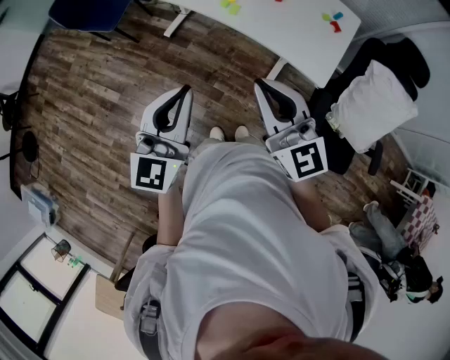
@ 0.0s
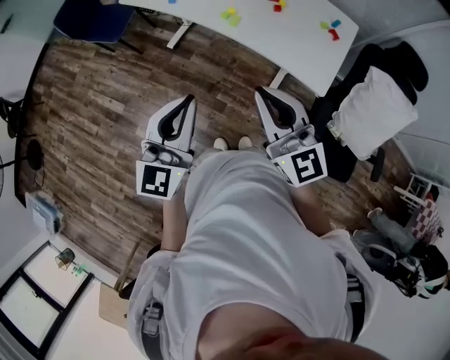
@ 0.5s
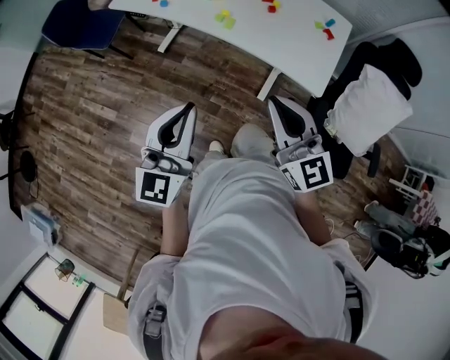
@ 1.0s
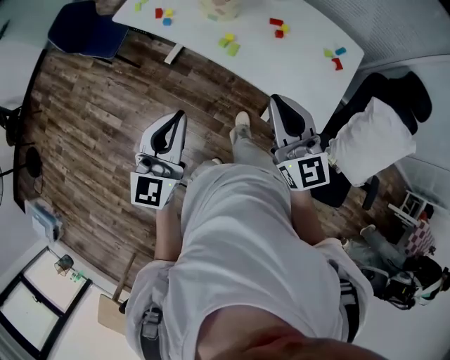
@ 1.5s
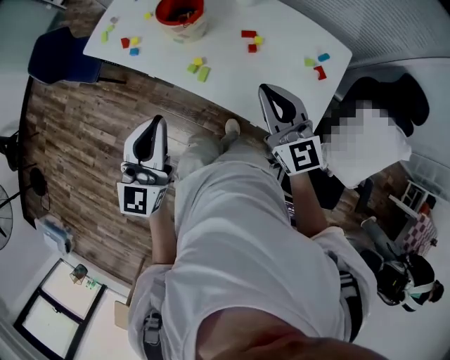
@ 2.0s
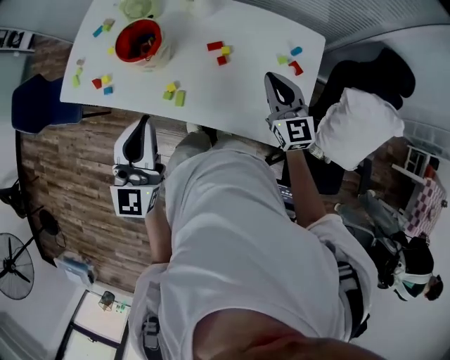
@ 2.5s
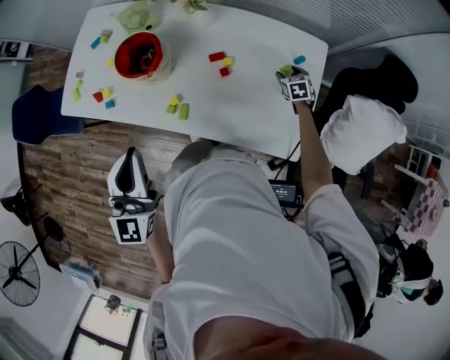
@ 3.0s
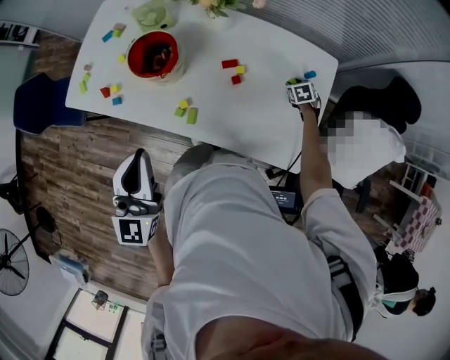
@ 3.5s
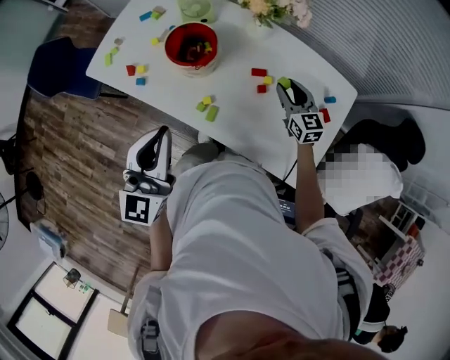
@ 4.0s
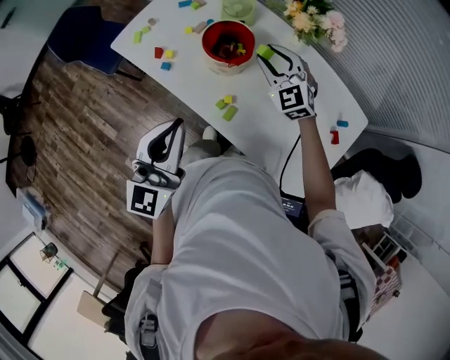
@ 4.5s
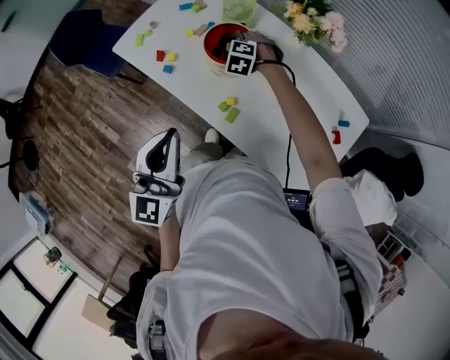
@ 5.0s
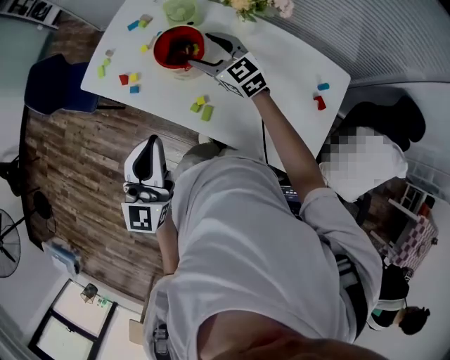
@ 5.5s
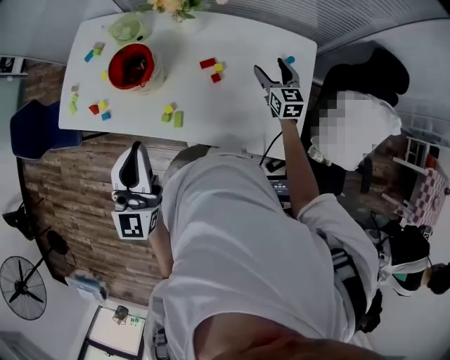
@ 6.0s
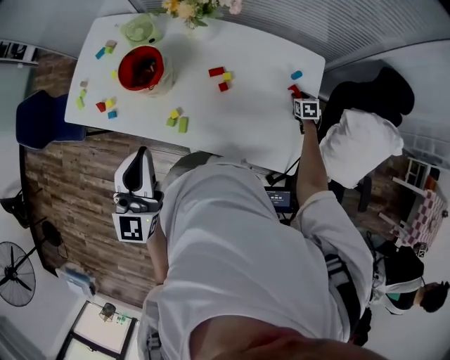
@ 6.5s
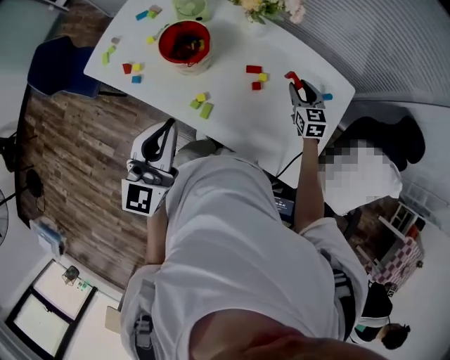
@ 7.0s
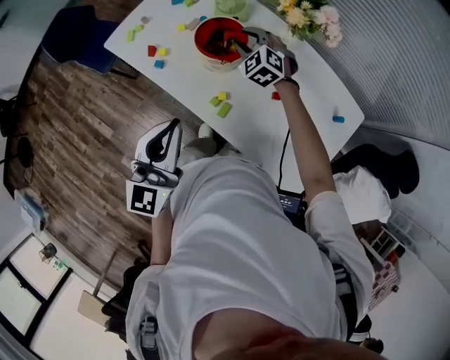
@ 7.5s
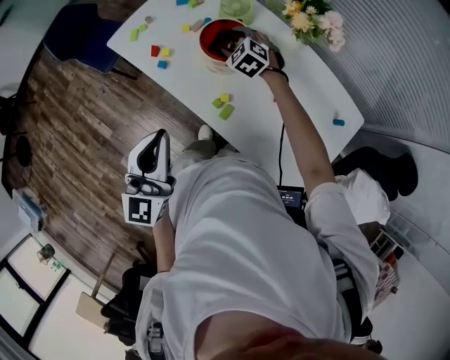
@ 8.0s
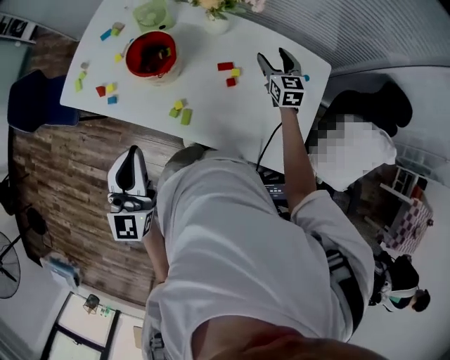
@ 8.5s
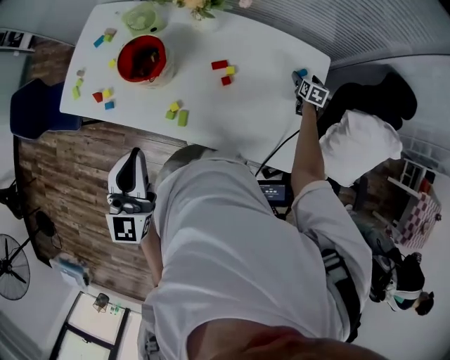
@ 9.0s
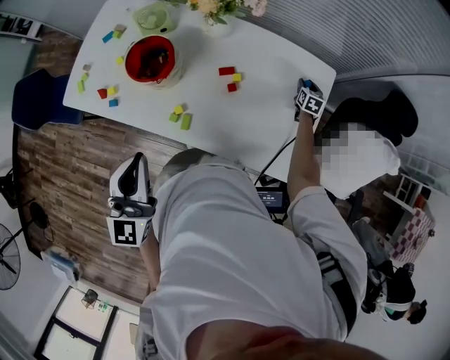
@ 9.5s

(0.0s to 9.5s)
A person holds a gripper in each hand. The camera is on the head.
0.0s - 2.0s: The left gripper moves forward, about 25 cm; the right gripper heads forward and to the right, covering about 35 cm.
2.0s - 4.0s: The right gripper is displaced forward and downward by roughly 30 cm, and opens its fingers. Meanwhile the left gripper is displaced forward by some 15 cm.
4.0s - 5.5s: The right gripper goes some 25 cm to the left, upward and forward, turns by some 20 degrees, and opens up.
5.5s - 7.5s: The right gripper goes downward and returns, roughly 30 cm each way, rotates roughly 40 degrees, and closes up.
7.5s - 9.5s: The right gripper shifts by roughly 60 cm, twists approximately 70 degrees clockwise, seen from behind, and opens, then closes again.

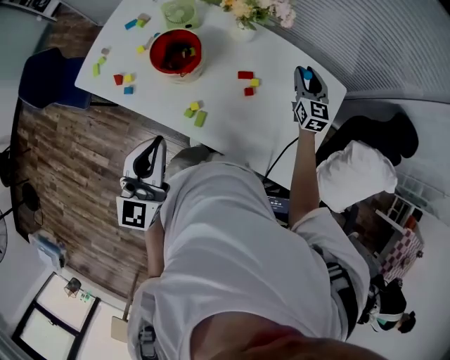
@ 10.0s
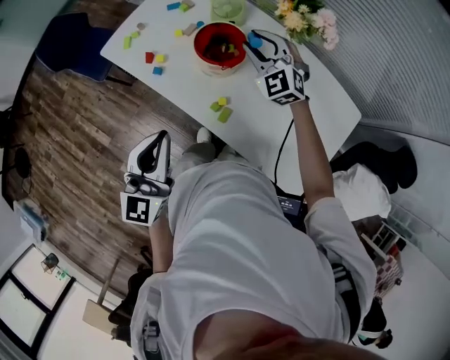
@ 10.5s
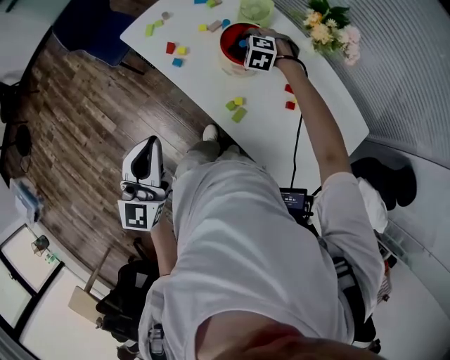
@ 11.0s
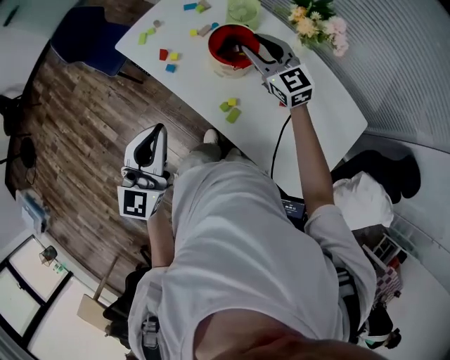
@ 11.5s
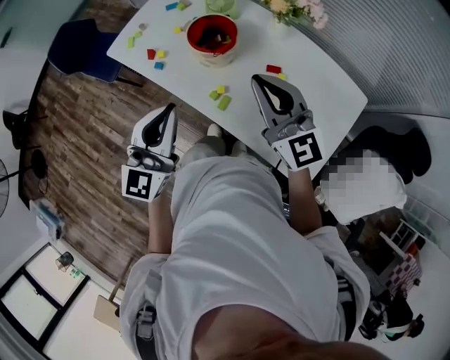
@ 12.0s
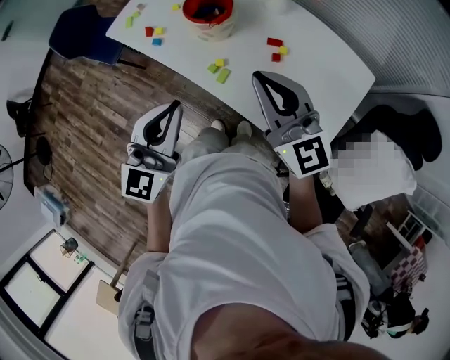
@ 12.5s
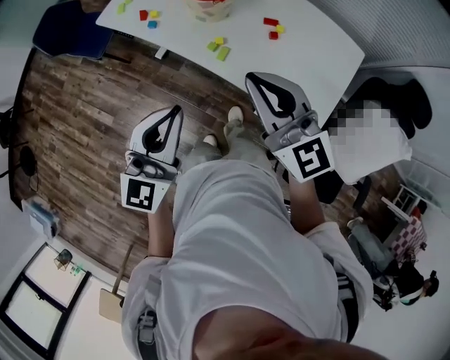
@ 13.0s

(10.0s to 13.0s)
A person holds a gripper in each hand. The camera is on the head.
10.0s - 11.5s: The right gripper moves up and down over approximately 20 cm, changing direction 2 times, and changes its angle by some 50 degrees. The left gripper moves approximately 10 cm.
11.5s - 13.0s: The left gripper moves backward, some 15 cm. Meanwhile the right gripper heads backward, covering approximately 35 cm, and closes.

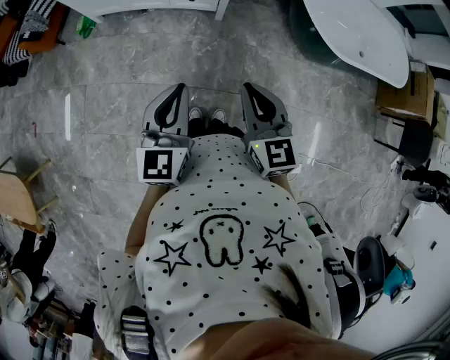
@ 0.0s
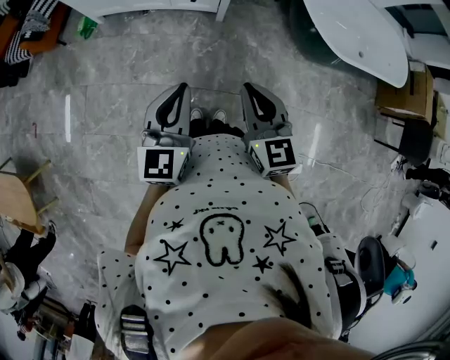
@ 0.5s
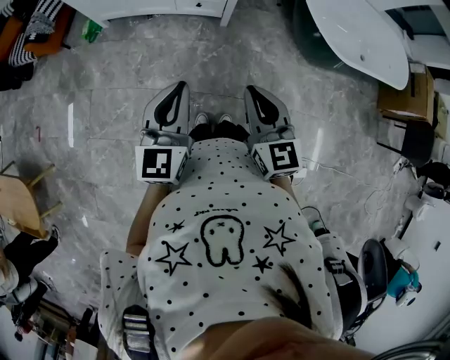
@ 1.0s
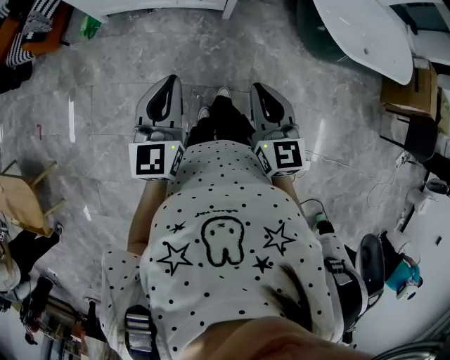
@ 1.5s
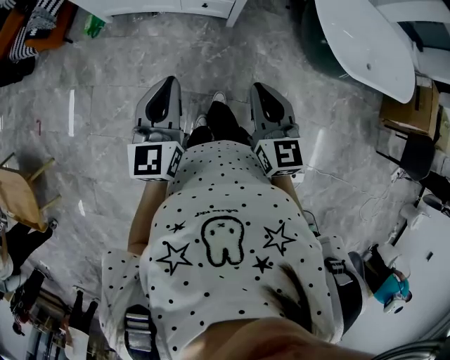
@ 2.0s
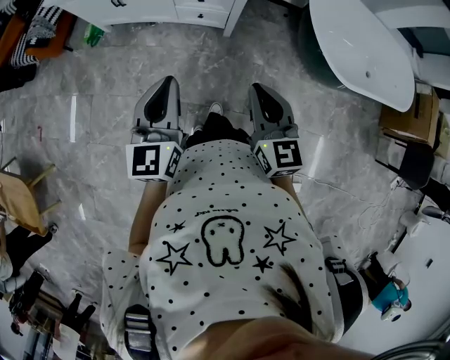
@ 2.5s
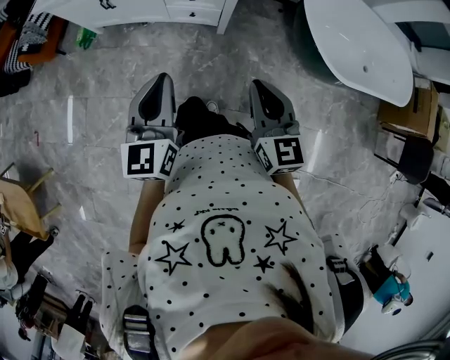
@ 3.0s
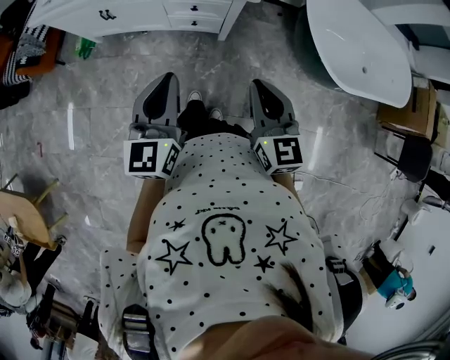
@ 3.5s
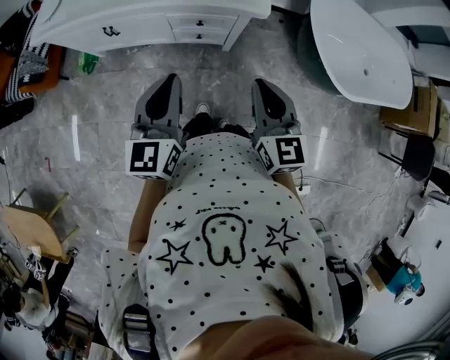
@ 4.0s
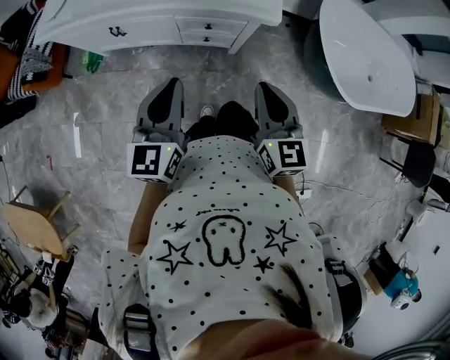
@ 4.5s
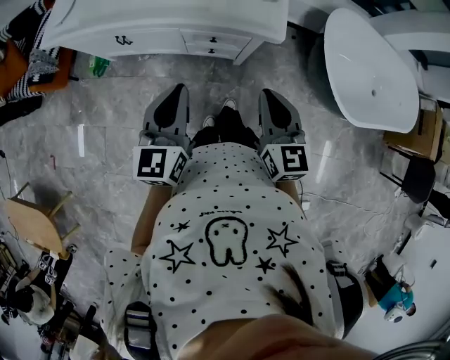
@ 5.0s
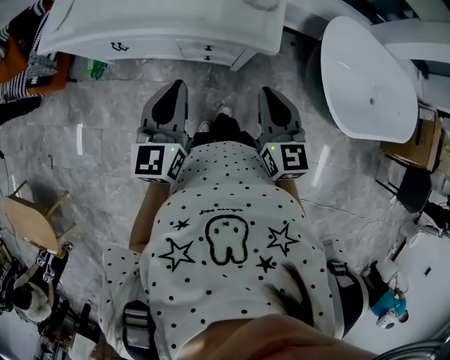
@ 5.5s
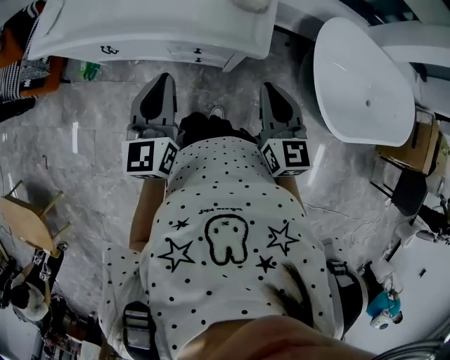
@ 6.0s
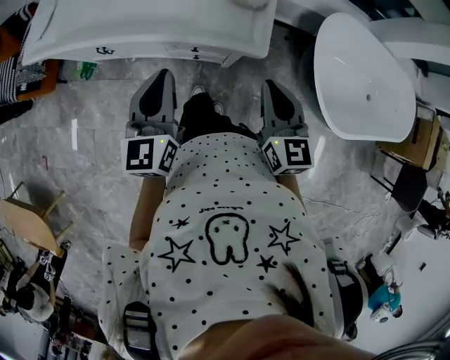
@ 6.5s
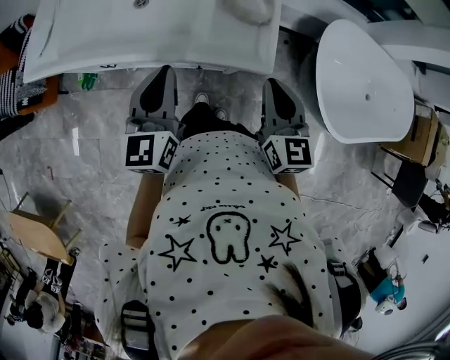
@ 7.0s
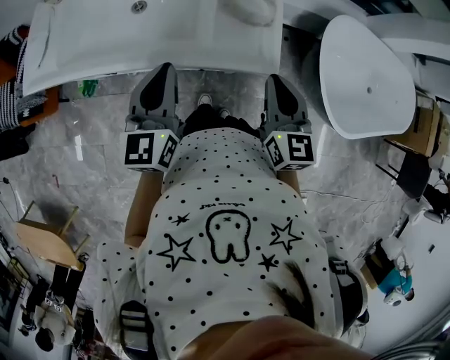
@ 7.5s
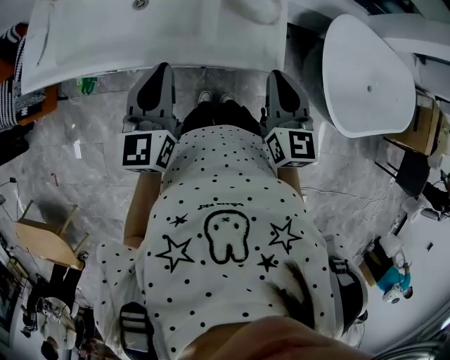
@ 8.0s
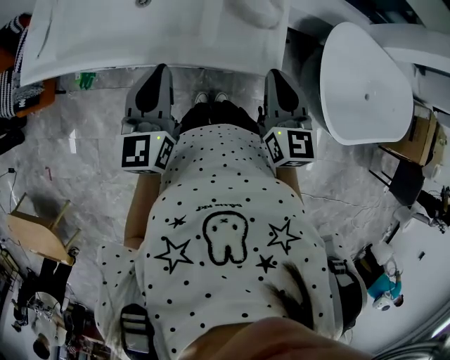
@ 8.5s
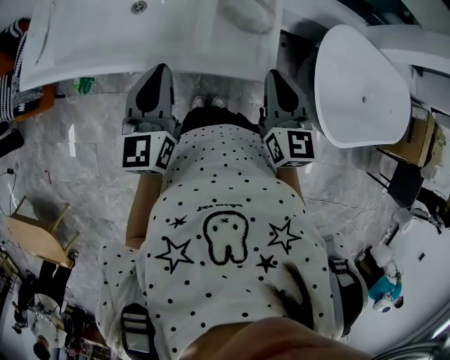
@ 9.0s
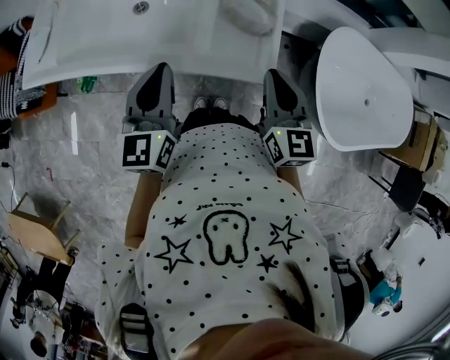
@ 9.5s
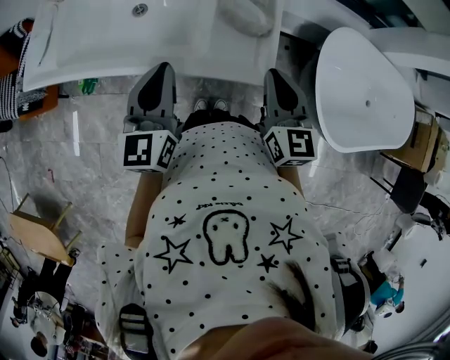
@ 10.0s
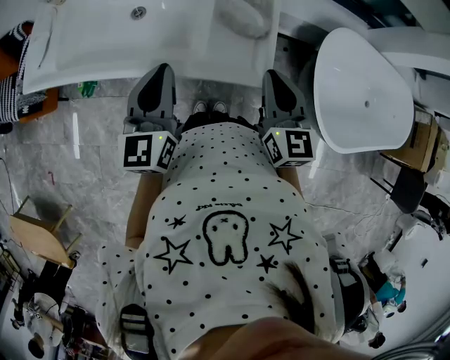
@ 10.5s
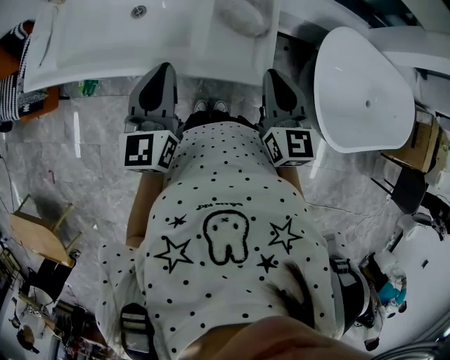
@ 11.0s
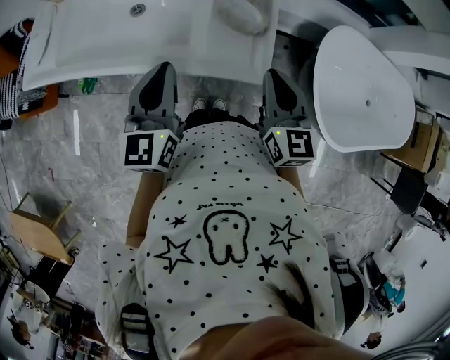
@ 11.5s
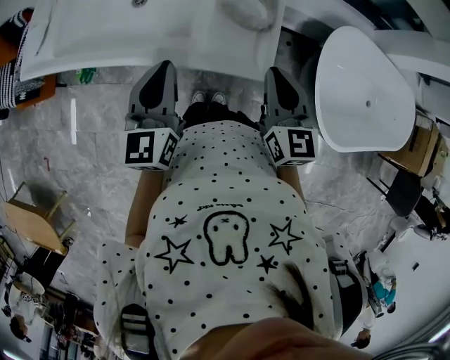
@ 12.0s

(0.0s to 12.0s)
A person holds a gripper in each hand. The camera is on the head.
0.0s - 2.0s: The left gripper shifts some 10 cm forward and to the left; the right gripper heads forward, covering some 5 cm.
2.0s - 4.0s: The two grippers go approximately 20 cm forward.
4.0s - 6.0s: The left gripper shifts roughly 5 cm to the left, and reaches roughly 10 cm forward, then returns. Meanwhile the right gripper moves approximately 10 cm forward and comes back.
6.0s - 10.0s: There are only small adjustments of the grippers.
10.0s - 12.0s: Both grippers stay put.

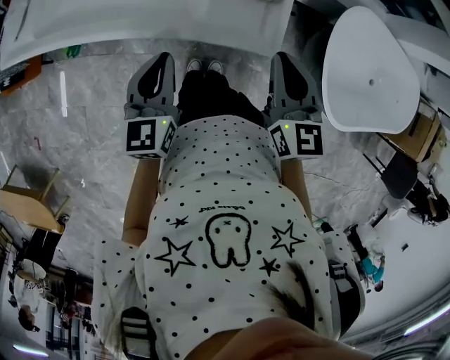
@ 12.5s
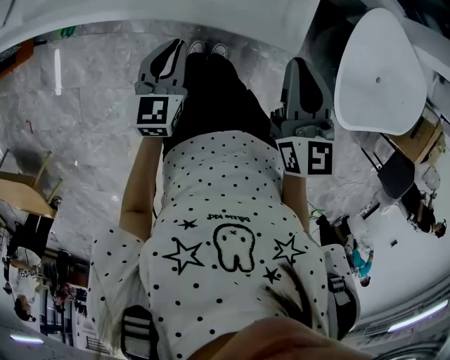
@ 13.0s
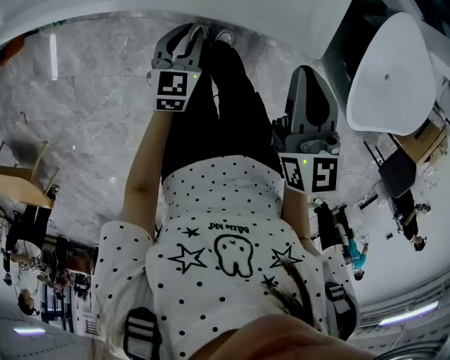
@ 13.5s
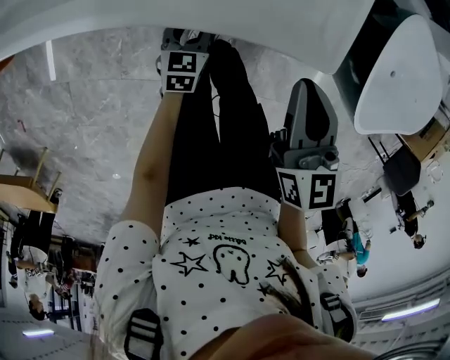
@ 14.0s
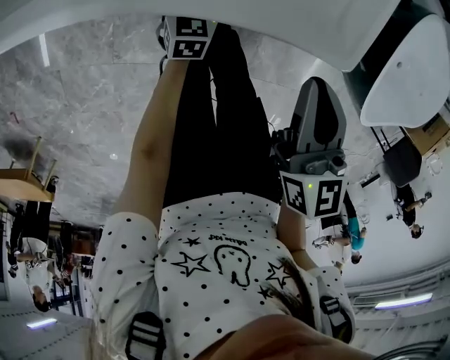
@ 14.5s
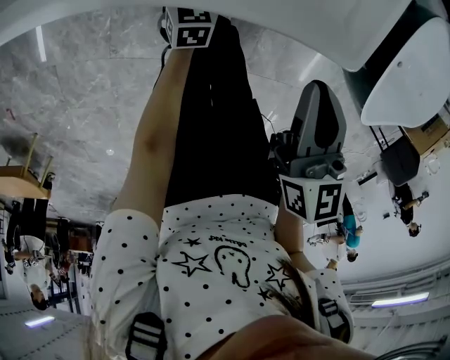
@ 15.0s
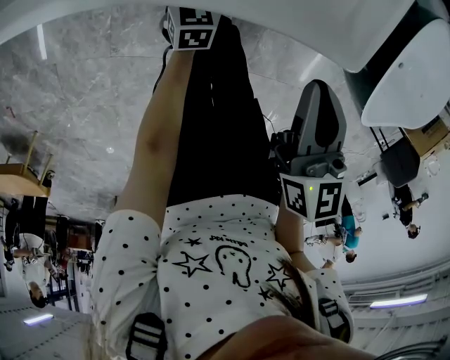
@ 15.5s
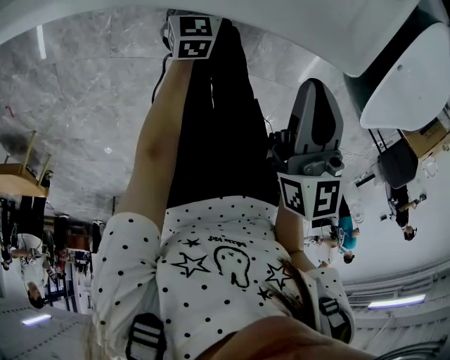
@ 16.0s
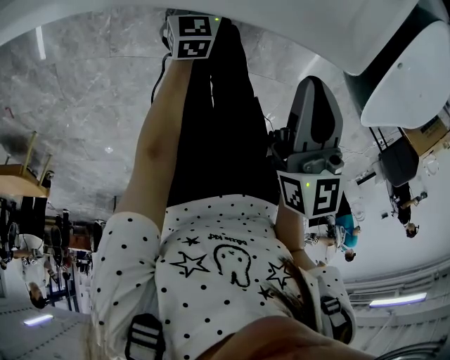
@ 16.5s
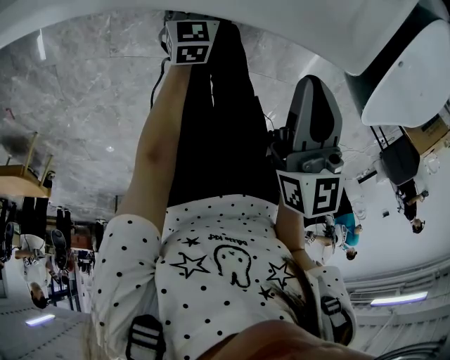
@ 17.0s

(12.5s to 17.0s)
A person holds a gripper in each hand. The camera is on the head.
12.5s - 14.5s: The left gripper moves downward, about 40 cm, changes its angle by approximately 20 degrees, and opens its fingers. The right gripper travels downward and backward by approximately 15 cm.
14.5s - 17.0s: The grippers make only small movements.
